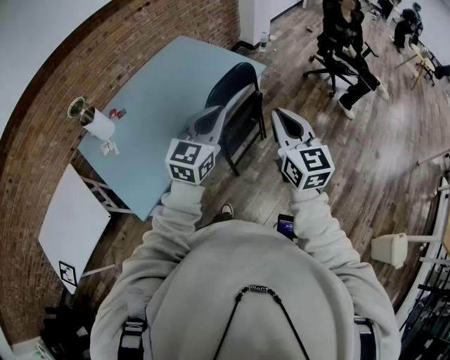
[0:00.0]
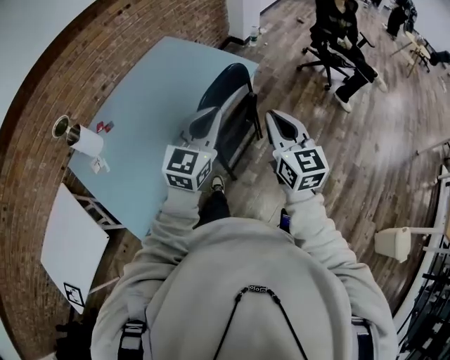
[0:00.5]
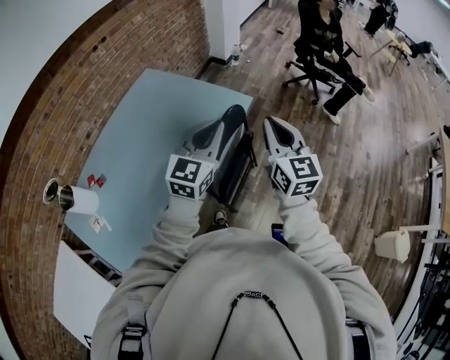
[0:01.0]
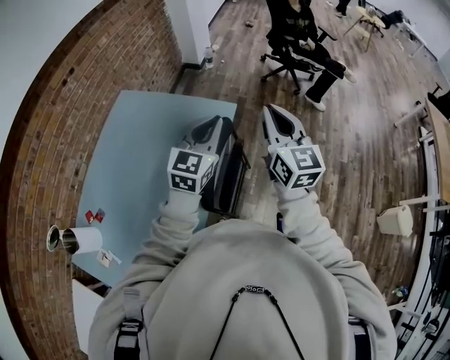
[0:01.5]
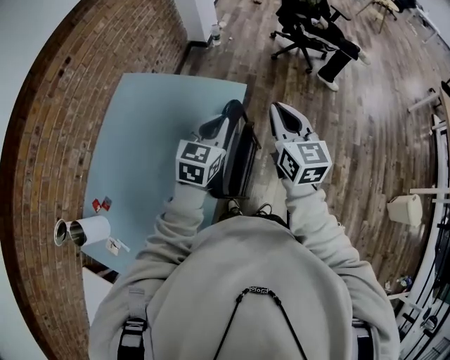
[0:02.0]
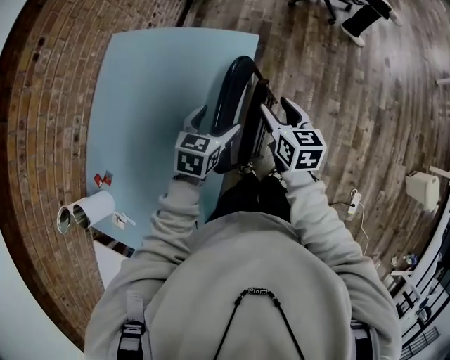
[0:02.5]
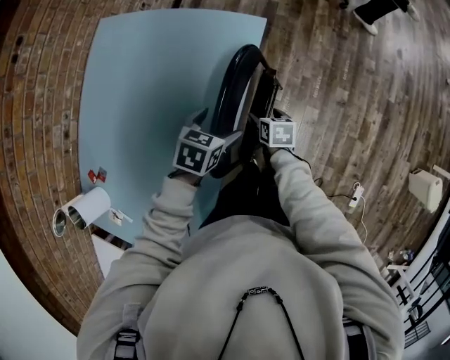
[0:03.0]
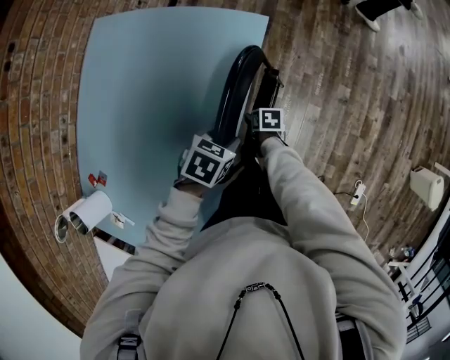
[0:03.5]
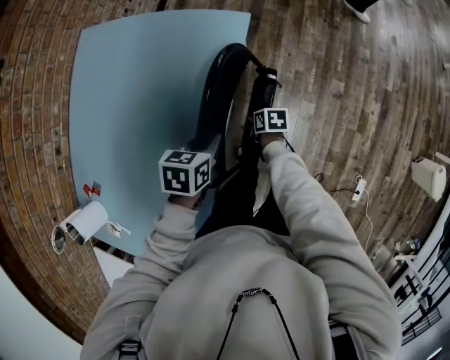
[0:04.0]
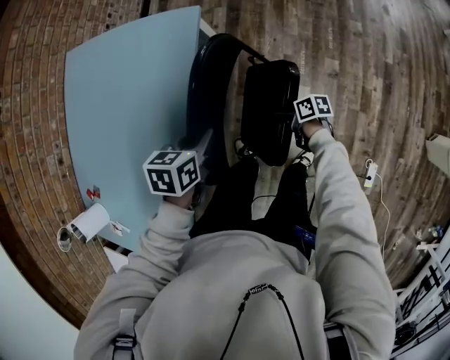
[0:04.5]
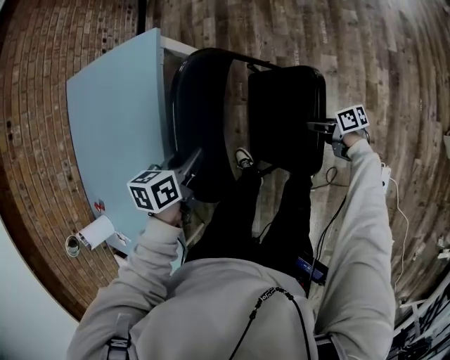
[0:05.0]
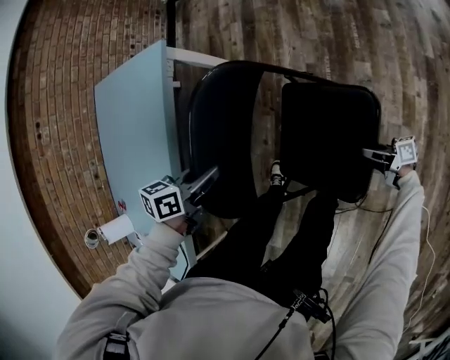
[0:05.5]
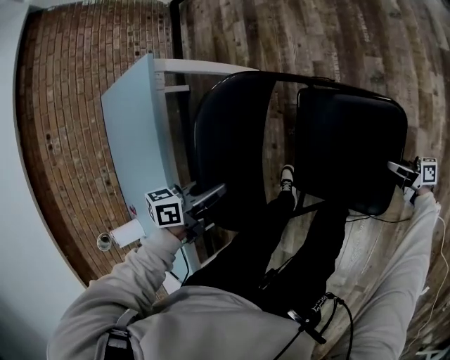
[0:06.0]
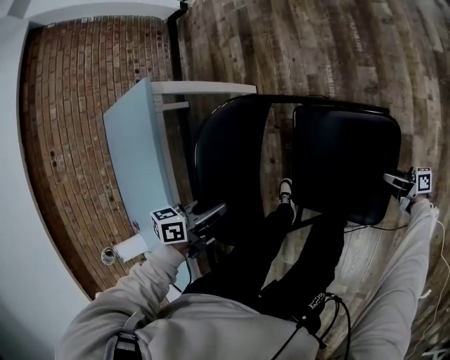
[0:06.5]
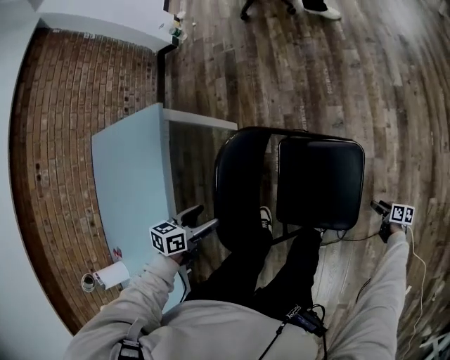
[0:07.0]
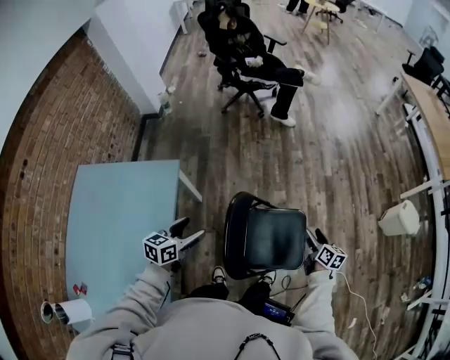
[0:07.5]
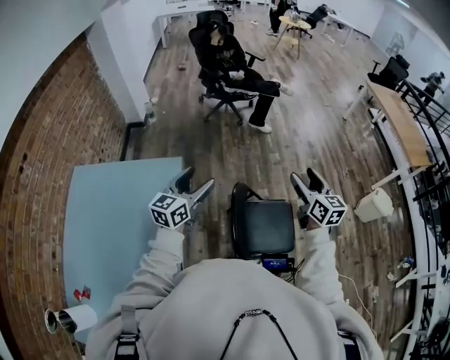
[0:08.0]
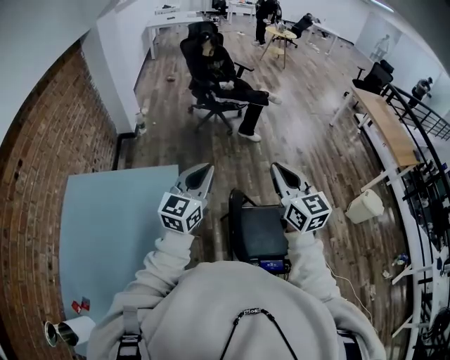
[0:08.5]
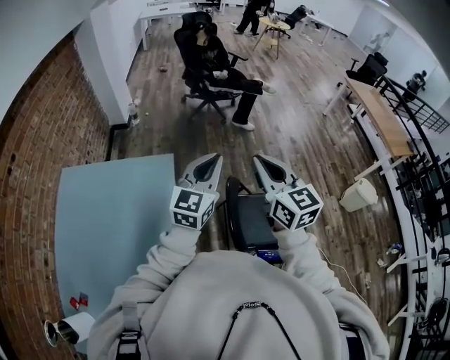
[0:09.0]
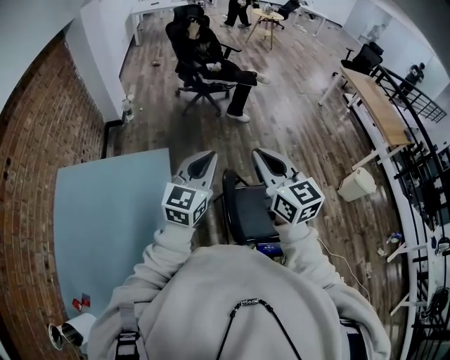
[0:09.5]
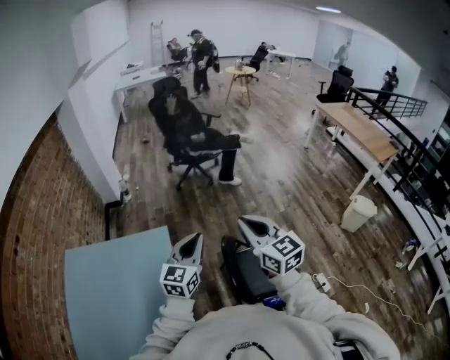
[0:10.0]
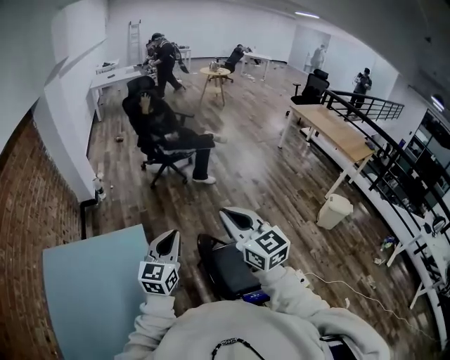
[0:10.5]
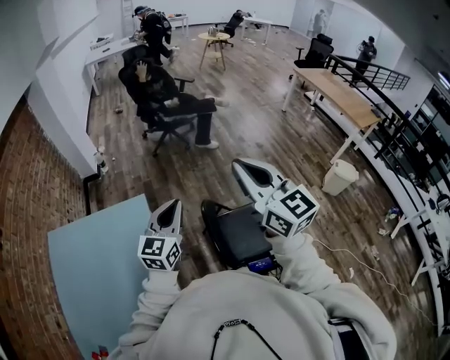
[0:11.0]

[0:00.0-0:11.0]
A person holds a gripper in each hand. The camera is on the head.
0:00.0 to 0:02.0: Both grippers move forward, roughly 40 cm. The right gripper rotates some 30 degrees, while the left gripper swivels roughly 30 degrees.
0:02.0 to 0:03.5: The right gripper shifts about 50 cm downward, points its fingers some 50 degrees further downward, and opens up. The left gripper moves downward, approximately 30 cm, points its fingers approximately 40 degrees further downward, and opens and closes again.
0:03.5 to 0:05.5: The right gripper ends up about 60 cm from where it was, tips its fingers upward by roughly 60 degrees, and closes; the left gripper ends up about 30 cm from where it was, and changes its angle by roughly 20 degrees.
0:05.5 to 0:07.5: The right gripper moves upward, about 40 cm, tilts its fingers approximately 30 degrees downward, and opens, while the left gripper moves upward, roughly 20 cm, swivels approximately 30 degrees, and opens.
0:07.5 to 0:09.0: The right gripper is displaced upward and to the left by about 60 cm, twists about 40 degrees counterclockwise, seen from behind, and closes. Meanwhile the left gripper shifts roughly 30 cm upward, points its fingers some 30 degrees further upward, and closes.
0:09.0 to 0:11.0: The right gripper travels upward and to the right by roughly 10 cm.

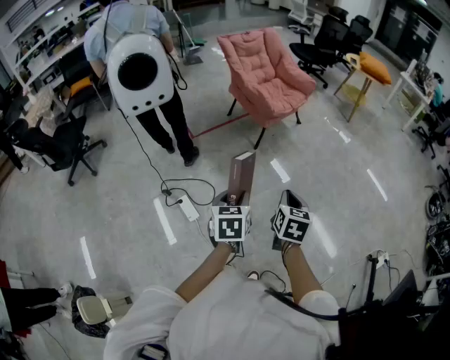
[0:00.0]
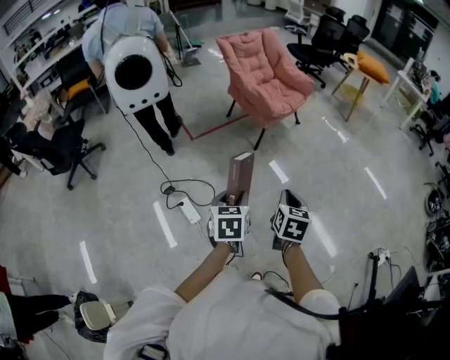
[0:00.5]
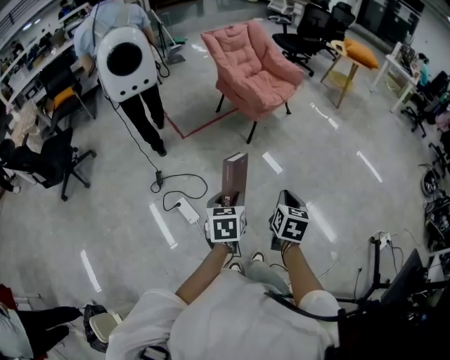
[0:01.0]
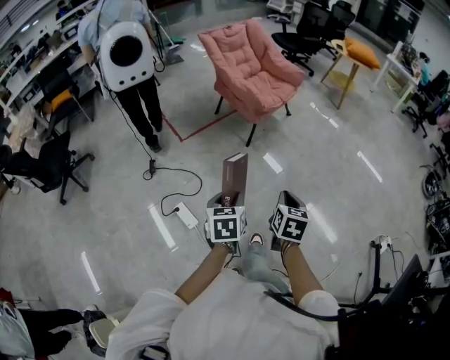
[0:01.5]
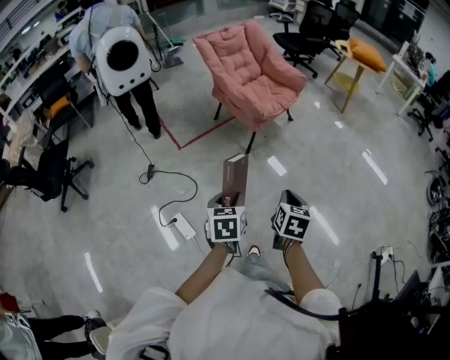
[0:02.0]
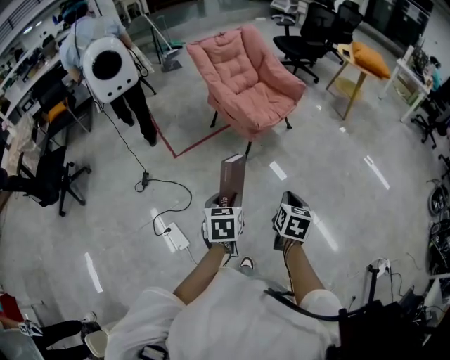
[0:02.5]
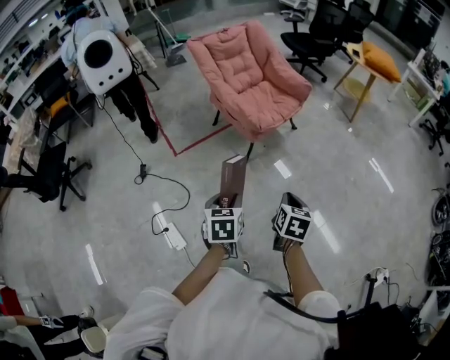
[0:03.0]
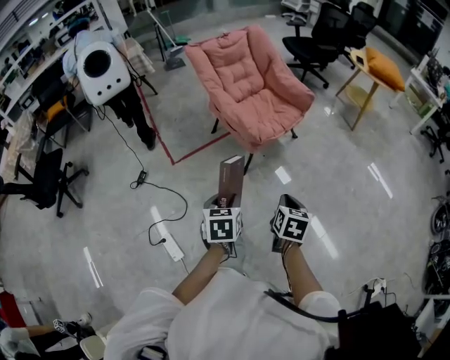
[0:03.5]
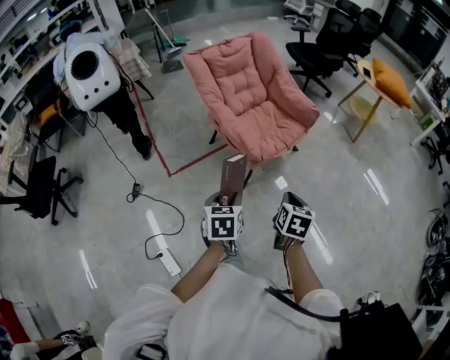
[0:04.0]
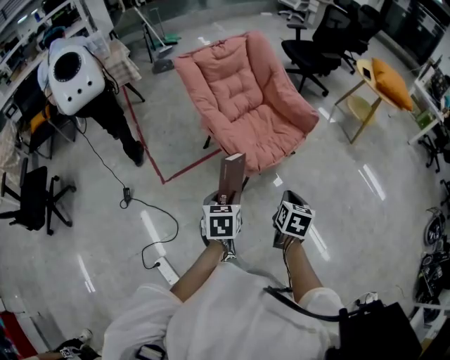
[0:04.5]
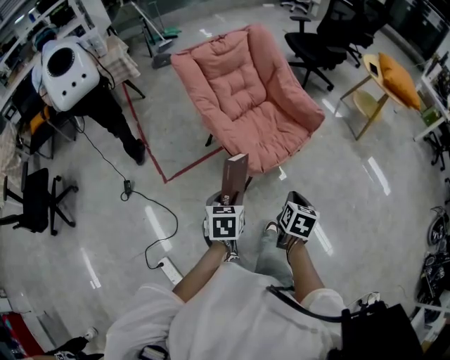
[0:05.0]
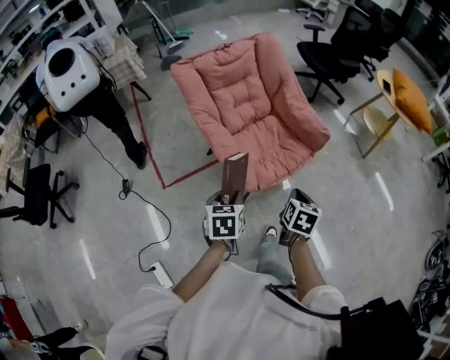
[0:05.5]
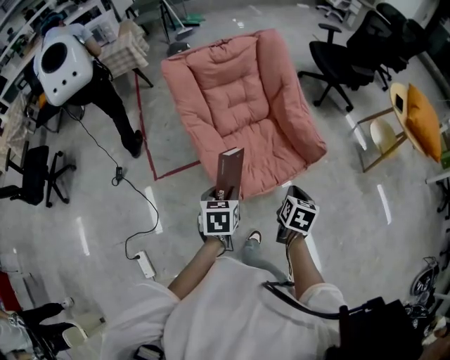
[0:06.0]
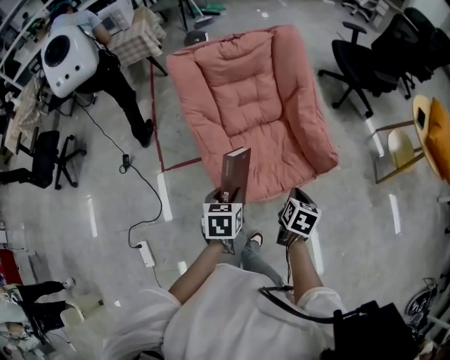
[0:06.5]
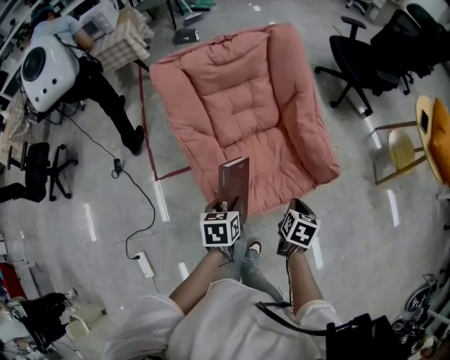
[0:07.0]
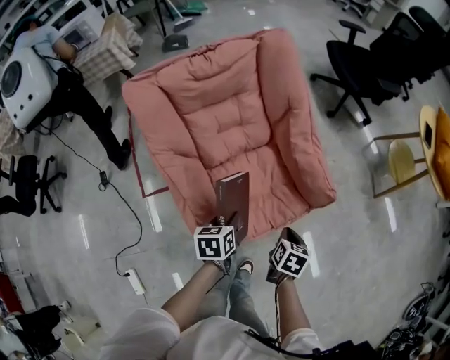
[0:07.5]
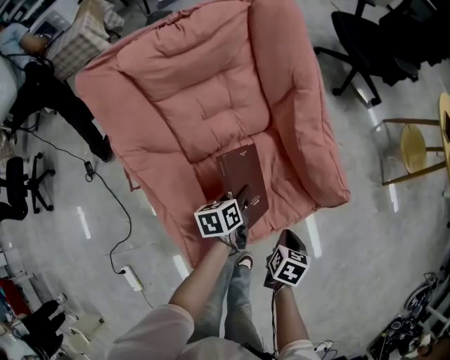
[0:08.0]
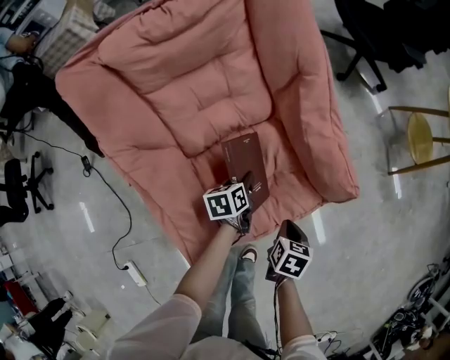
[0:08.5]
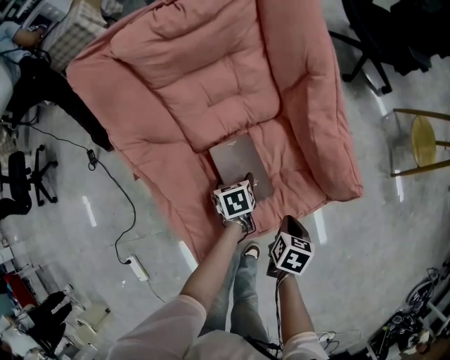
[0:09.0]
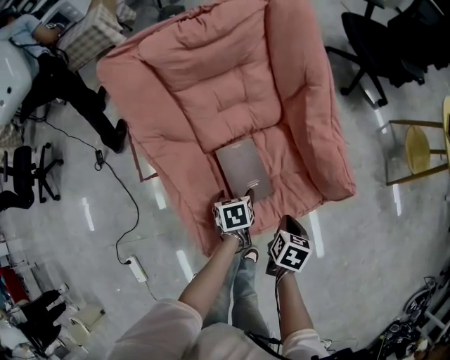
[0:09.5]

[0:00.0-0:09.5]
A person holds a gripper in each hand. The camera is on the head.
0:00.0 to 0:02.0: The two grippers go approximately 15 cm forward.
0:02.0 to 0:04.0: Both grippers move forward, some 35 cm.
0:04.0 to 0:05.5: Both grippers travel together forward, about 25 cm.
0:05.5 to 0:07.5: Both grippers move forward and downward, about 30 cm. The left gripper swivels roughly 20 degrees.
0:07.5 to 0:09.5: The left gripper moves downward, about 15 cm, and opens. Meanwhile the right gripper shifts roughly 5 cm downward.

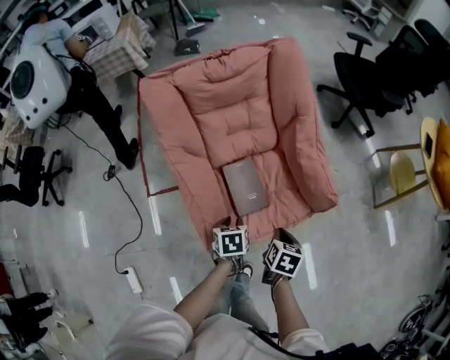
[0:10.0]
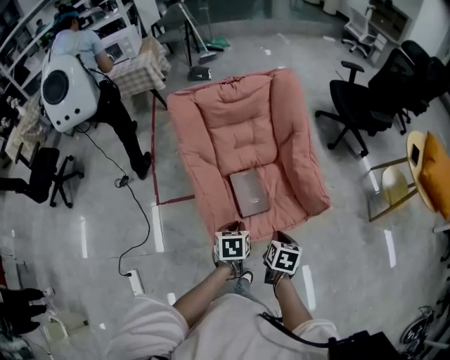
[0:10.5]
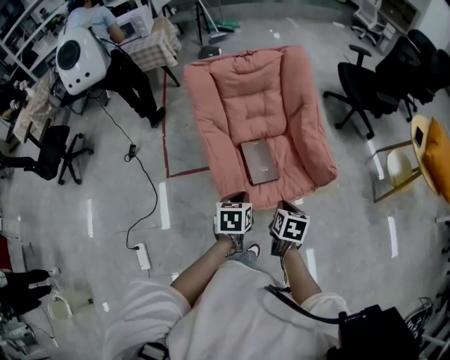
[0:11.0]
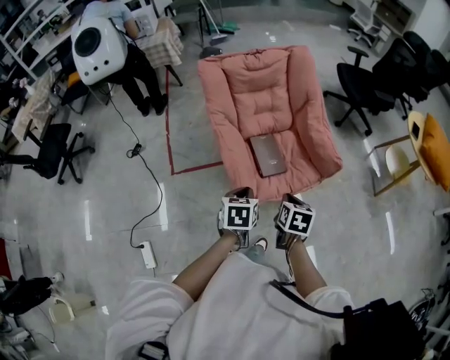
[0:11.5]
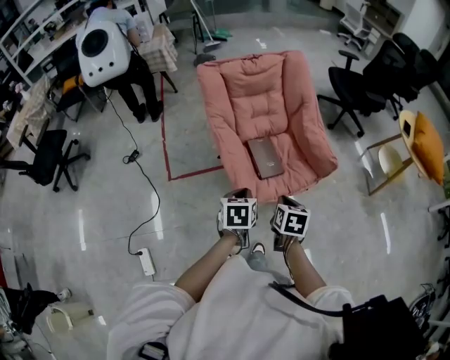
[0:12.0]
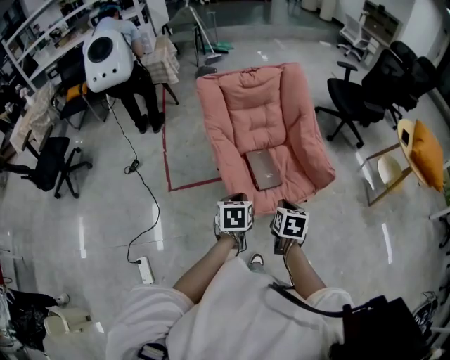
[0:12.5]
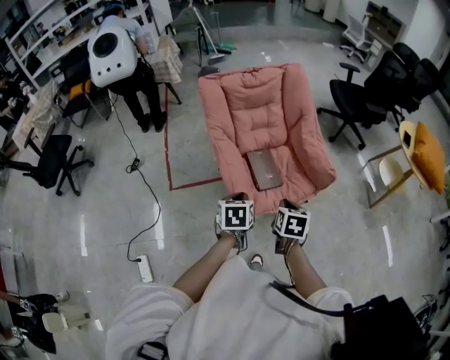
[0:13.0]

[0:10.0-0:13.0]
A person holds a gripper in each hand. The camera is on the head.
0:10.0 to 0:11.5: The right gripper heads backward, upward and to the left, covering about 20 cm, while the left gripper heads upward and backward, covering about 25 cm.
0:11.5 to 0:13.0: The grippers move only a little.

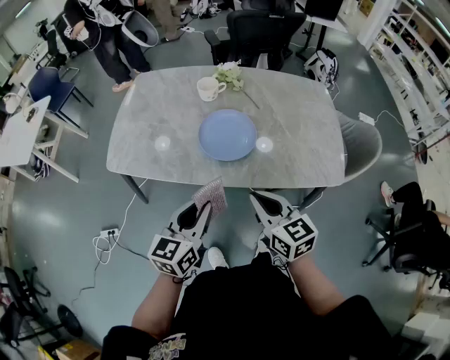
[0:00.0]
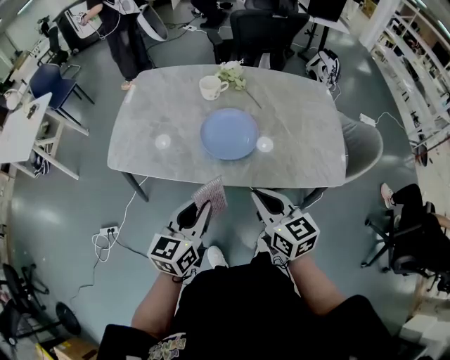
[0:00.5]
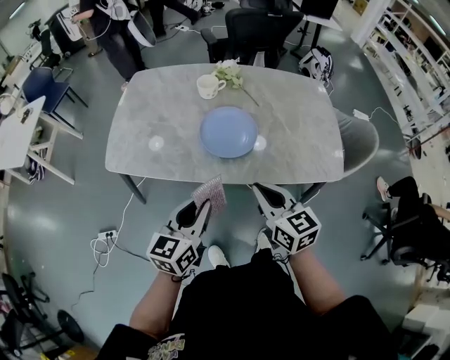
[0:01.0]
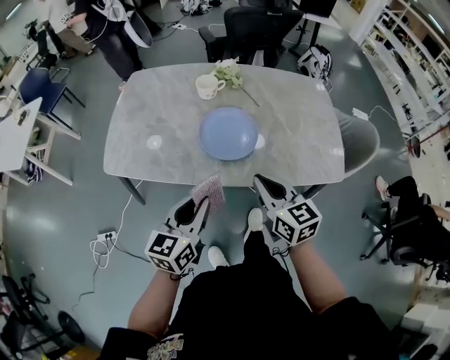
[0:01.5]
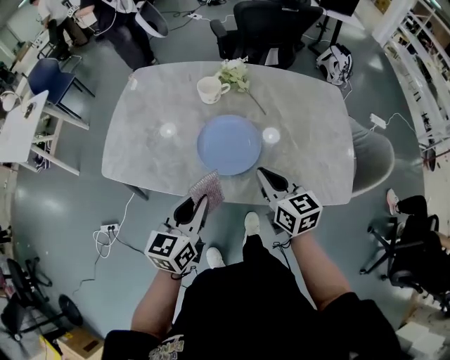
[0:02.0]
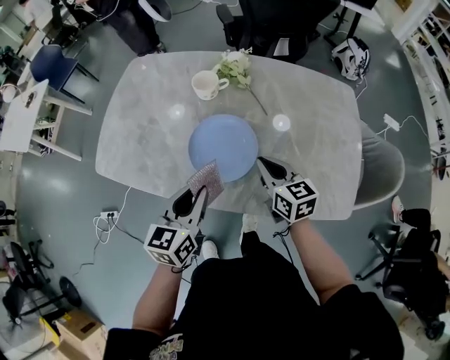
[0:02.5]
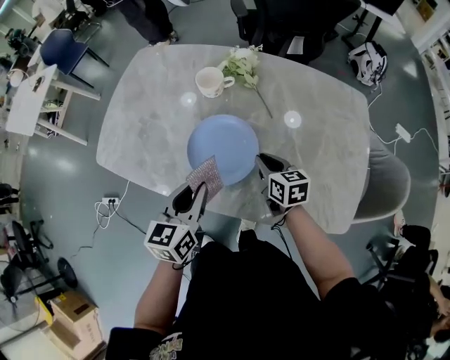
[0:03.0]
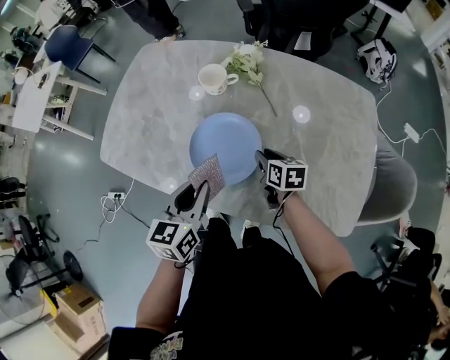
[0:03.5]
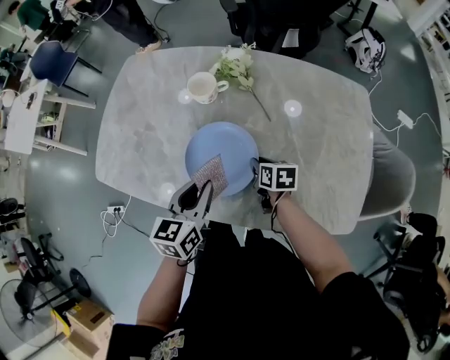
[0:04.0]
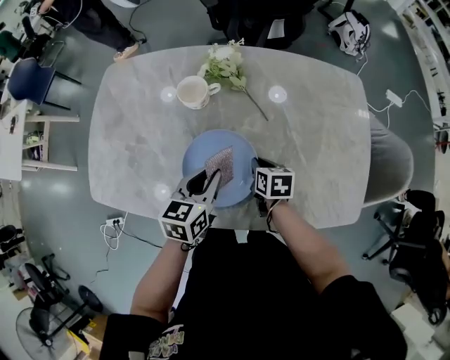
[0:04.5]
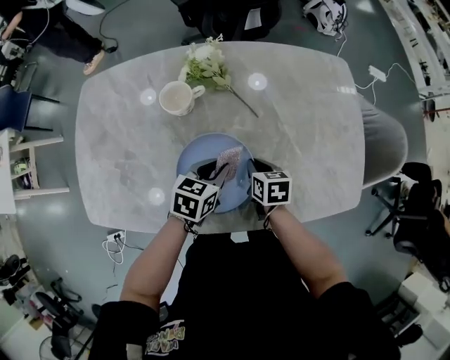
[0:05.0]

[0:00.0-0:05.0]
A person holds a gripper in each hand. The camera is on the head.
0:00.0 to 0:02.5: Both grippers move forward, roughly 20 cm.
0:02.5 to 0:05.0: The right gripper heads downward, covering roughly 15 cm, changes its angle by approximately 40 degrees, and opens and closes again; the left gripper shifts by about 25 cm, and changes its angle by approximately 40 degrees.
